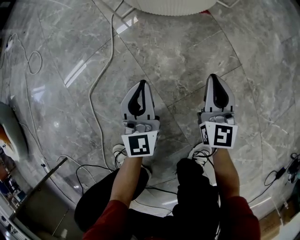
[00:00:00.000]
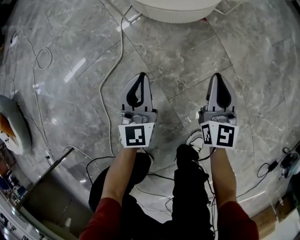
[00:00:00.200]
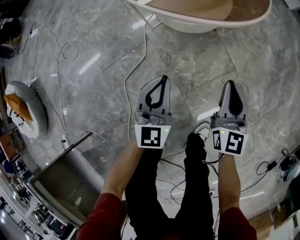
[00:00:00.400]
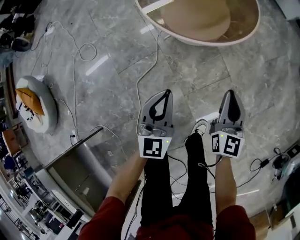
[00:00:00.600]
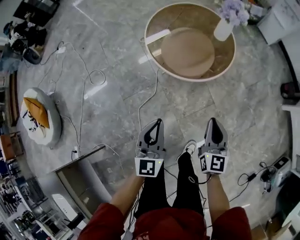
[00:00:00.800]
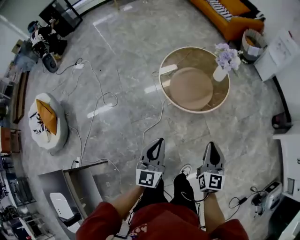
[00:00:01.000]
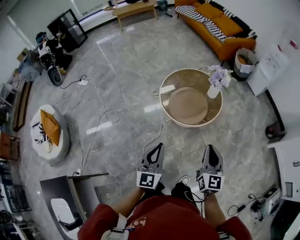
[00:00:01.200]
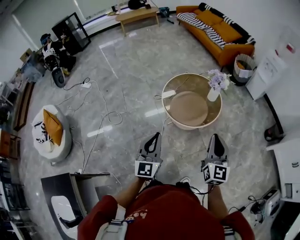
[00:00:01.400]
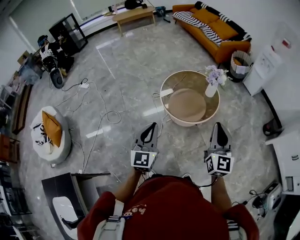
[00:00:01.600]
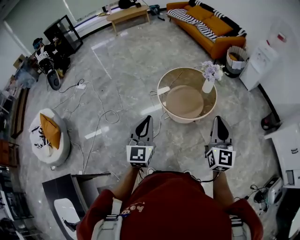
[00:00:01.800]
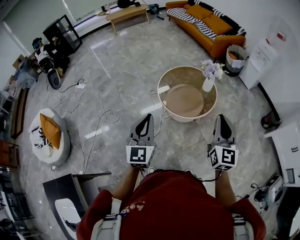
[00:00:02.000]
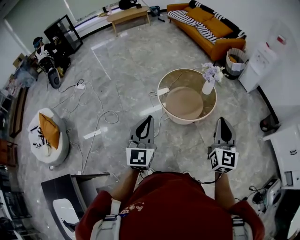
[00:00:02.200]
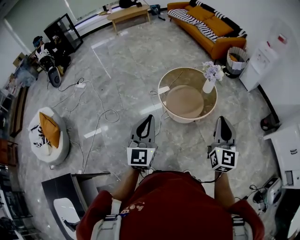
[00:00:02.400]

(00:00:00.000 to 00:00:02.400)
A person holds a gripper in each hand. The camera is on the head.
00:00:00.000 - 00:00:01.200: The grippers both shift upward by about 80 cm.
00:00:01.200 - 00:00:02.400: The left gripper goes some 15 cm upward and to the left. The right gripper heads upward, covering approximately 15 cm.

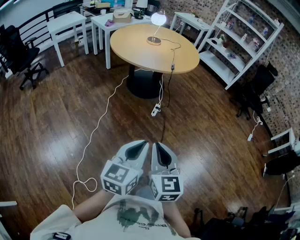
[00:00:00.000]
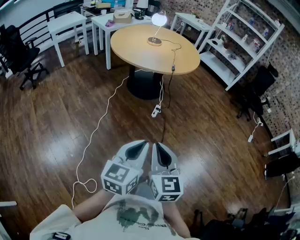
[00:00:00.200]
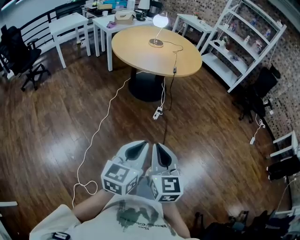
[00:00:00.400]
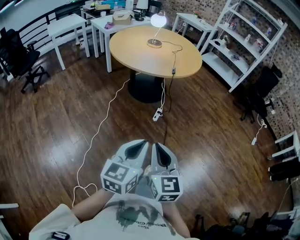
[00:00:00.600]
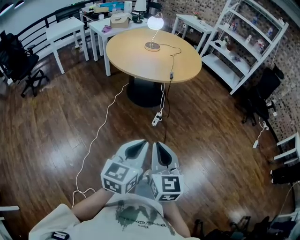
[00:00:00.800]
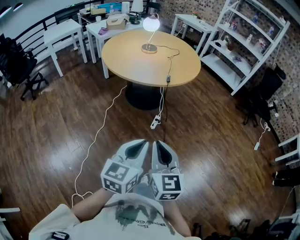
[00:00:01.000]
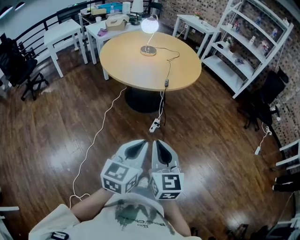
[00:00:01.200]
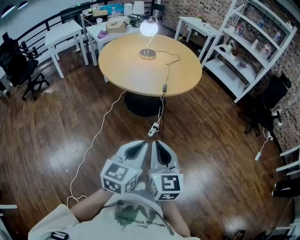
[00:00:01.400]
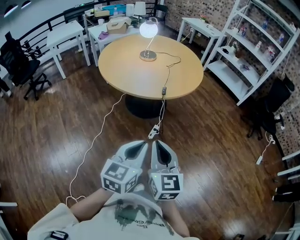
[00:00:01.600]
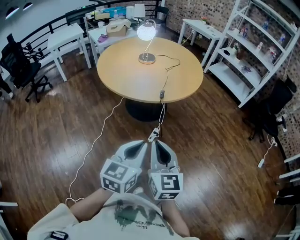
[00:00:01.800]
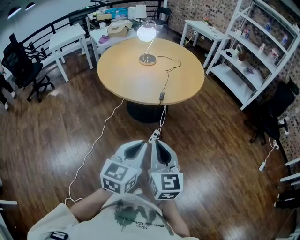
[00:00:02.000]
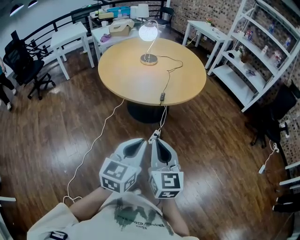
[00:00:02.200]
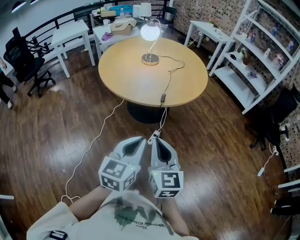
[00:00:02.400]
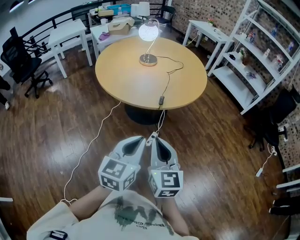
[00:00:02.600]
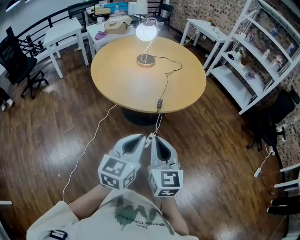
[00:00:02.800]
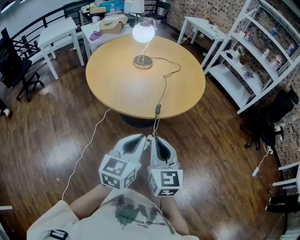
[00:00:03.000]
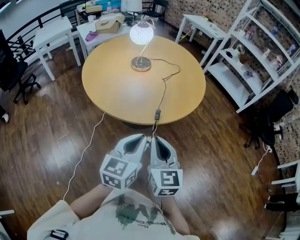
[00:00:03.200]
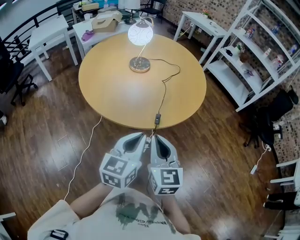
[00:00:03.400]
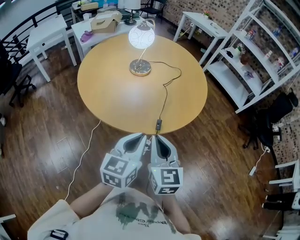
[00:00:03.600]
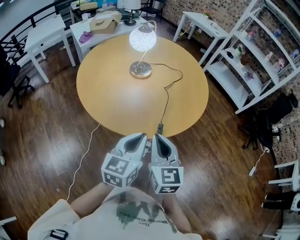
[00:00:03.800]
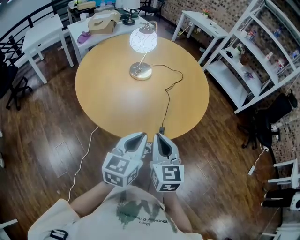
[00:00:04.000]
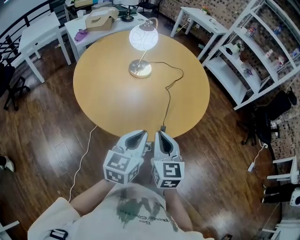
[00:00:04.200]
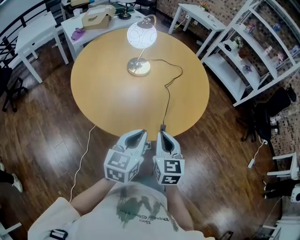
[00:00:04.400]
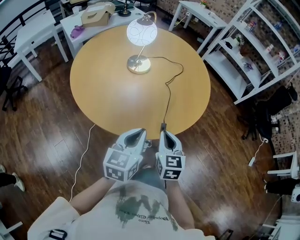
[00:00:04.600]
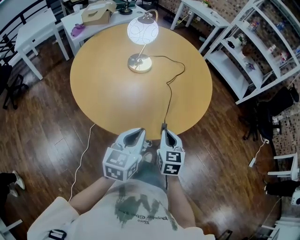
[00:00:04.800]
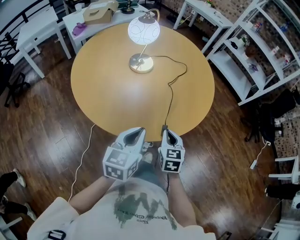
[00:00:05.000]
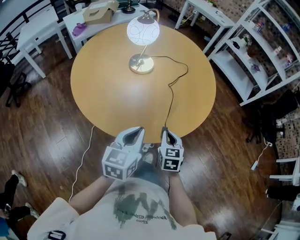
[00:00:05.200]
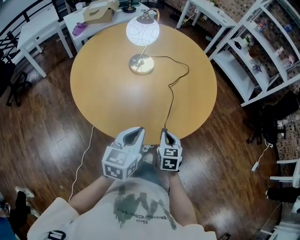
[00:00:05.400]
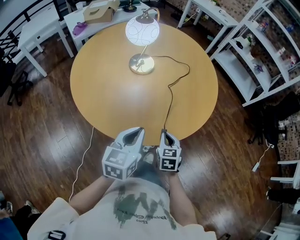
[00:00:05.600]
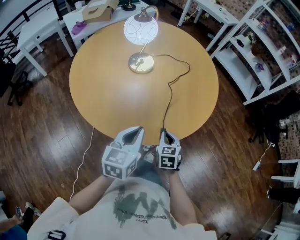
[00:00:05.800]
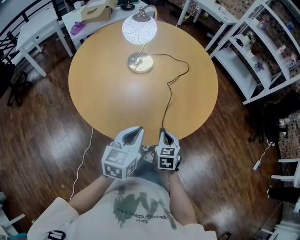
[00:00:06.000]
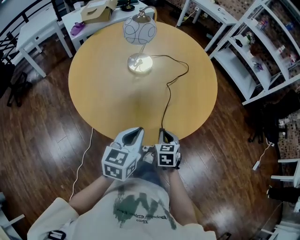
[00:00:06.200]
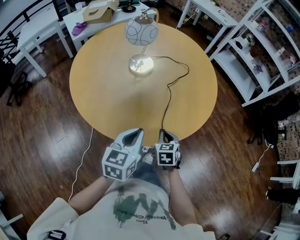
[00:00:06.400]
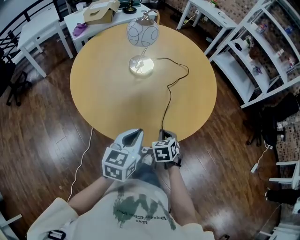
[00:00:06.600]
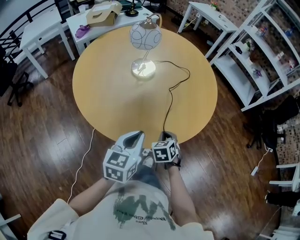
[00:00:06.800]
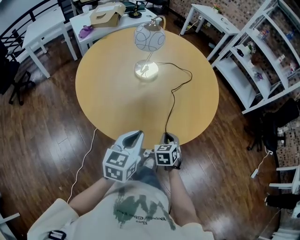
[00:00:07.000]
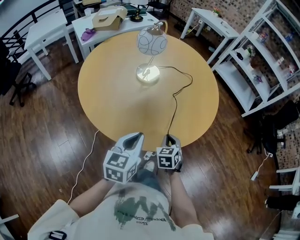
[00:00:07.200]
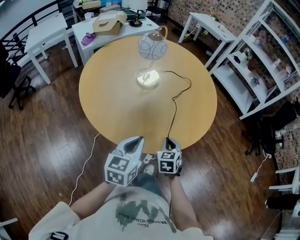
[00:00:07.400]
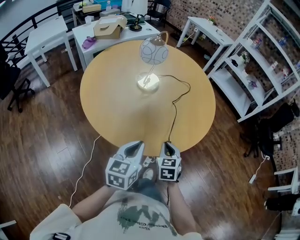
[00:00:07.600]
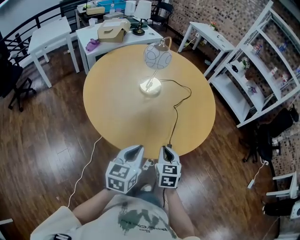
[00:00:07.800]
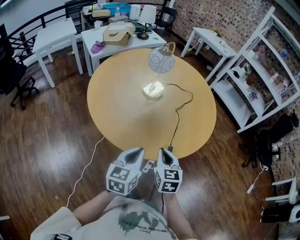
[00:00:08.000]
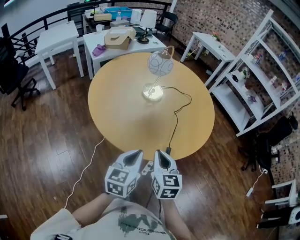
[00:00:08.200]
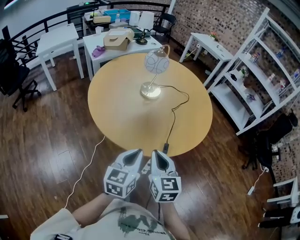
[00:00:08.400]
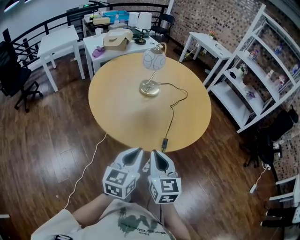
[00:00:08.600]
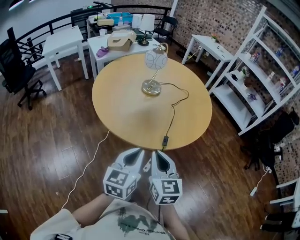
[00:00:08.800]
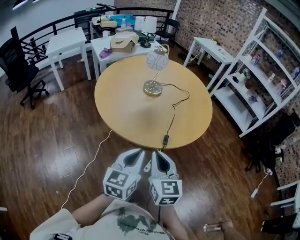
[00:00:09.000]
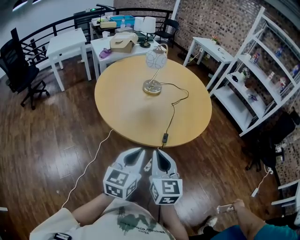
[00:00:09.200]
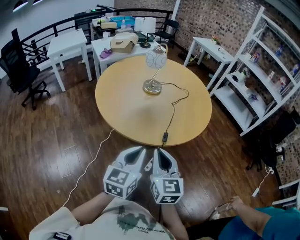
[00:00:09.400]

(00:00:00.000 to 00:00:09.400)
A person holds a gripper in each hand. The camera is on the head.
00:00:00.000 - 00:00:01.600: Both grippers move forward, roughly 30 cm.
00:00:01.600 - 00:00:03.200: Both grippers move forward, approximately 25 cm.
00:00:03.200 - 00:00:04.800: The left gripper travels forward, downward and to the left by roughly 20 cm; the right gripper is displaced forward and downward by approximately 25 cm, and changes its angle by some 20 degrees.
00:00:04.800 - 00:00:06.200: The right gripper shifts approximately 10 cm downward.
00:00:06.200 - 00:00:07.800: The left gripper heads backward, covering approximately 5 cm. Meanwhile the right gripper travels upward and to the left by roughly 10 cm.
00:00:07.800 - 00:00:09.400: The two grippers go roughly 20 cm backward and upward. The right gripper rotates roughly 30 degrees.

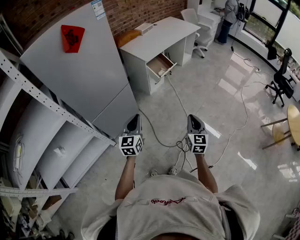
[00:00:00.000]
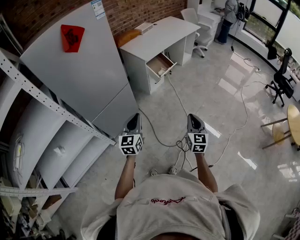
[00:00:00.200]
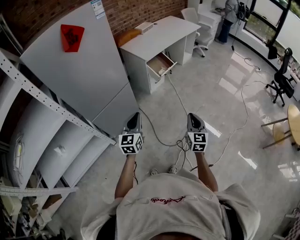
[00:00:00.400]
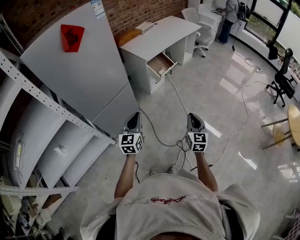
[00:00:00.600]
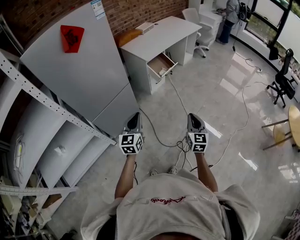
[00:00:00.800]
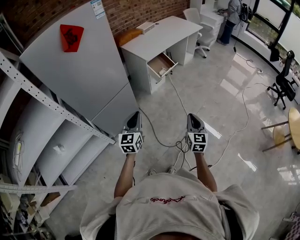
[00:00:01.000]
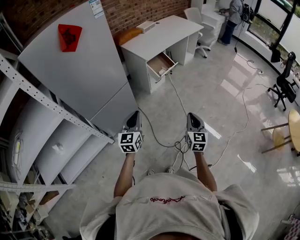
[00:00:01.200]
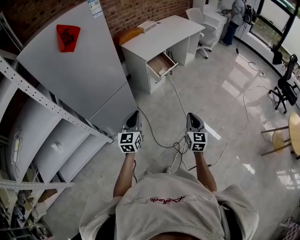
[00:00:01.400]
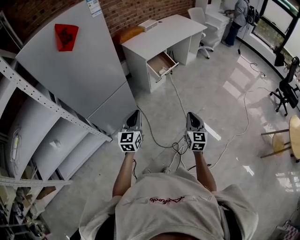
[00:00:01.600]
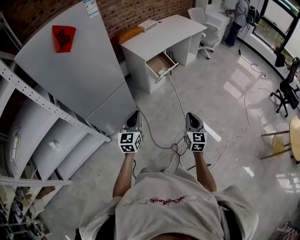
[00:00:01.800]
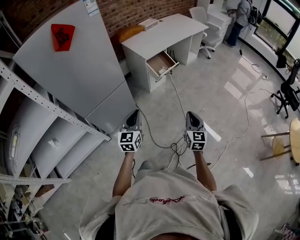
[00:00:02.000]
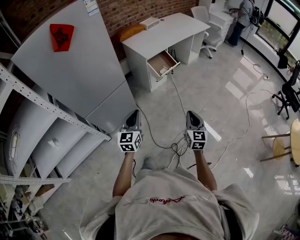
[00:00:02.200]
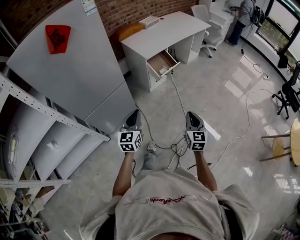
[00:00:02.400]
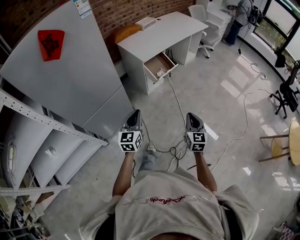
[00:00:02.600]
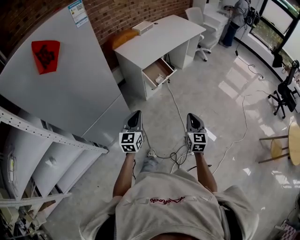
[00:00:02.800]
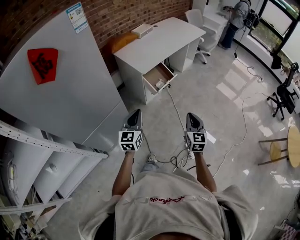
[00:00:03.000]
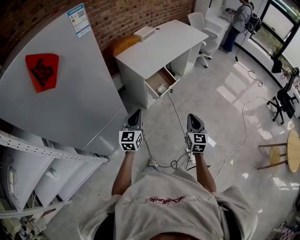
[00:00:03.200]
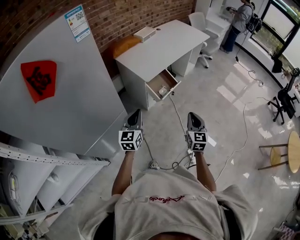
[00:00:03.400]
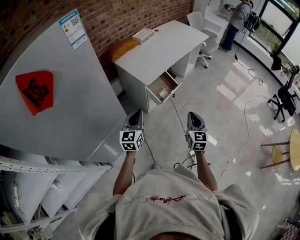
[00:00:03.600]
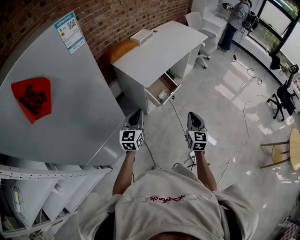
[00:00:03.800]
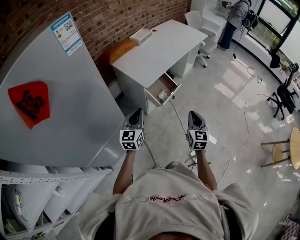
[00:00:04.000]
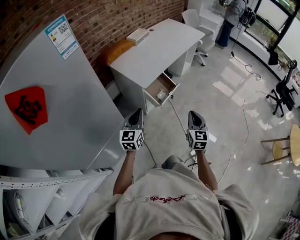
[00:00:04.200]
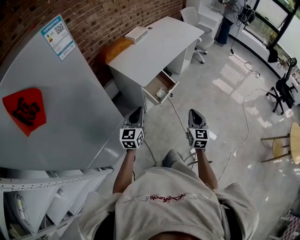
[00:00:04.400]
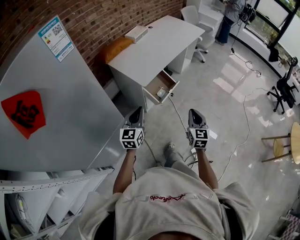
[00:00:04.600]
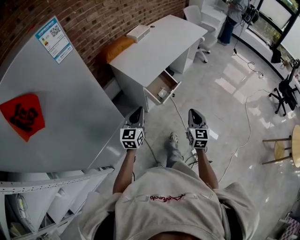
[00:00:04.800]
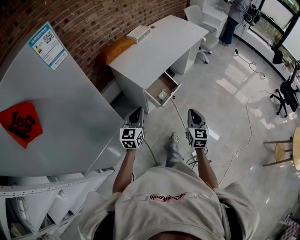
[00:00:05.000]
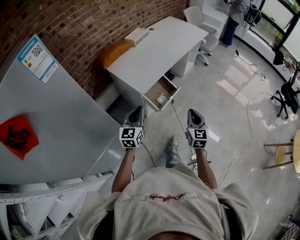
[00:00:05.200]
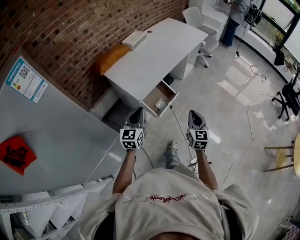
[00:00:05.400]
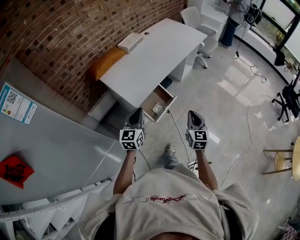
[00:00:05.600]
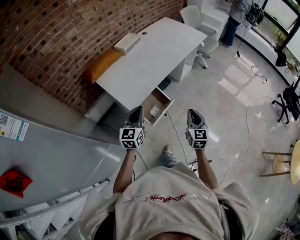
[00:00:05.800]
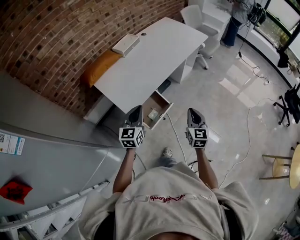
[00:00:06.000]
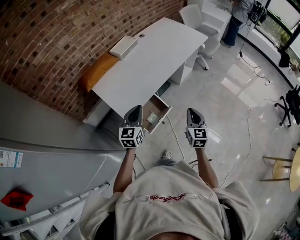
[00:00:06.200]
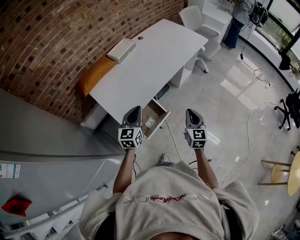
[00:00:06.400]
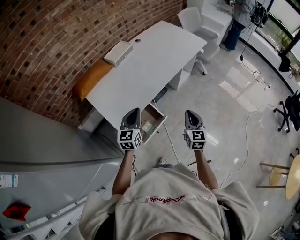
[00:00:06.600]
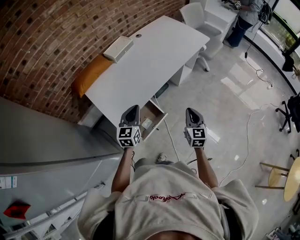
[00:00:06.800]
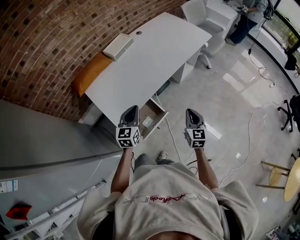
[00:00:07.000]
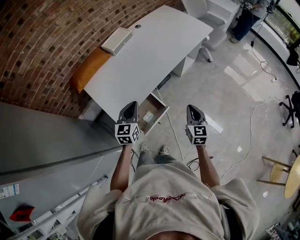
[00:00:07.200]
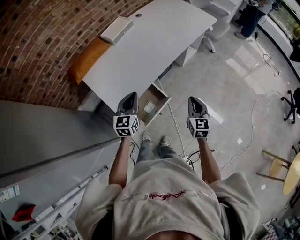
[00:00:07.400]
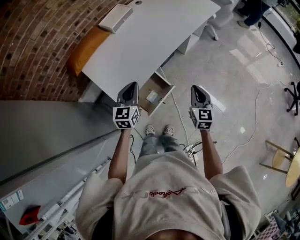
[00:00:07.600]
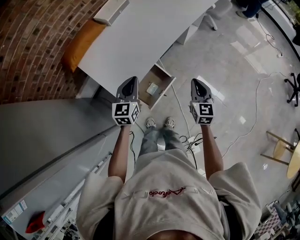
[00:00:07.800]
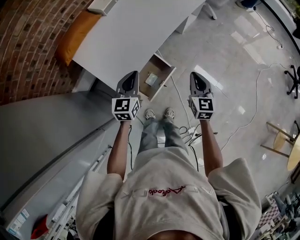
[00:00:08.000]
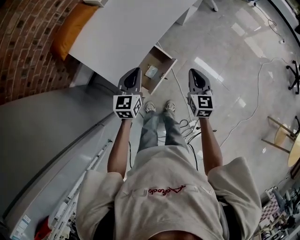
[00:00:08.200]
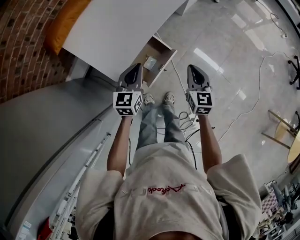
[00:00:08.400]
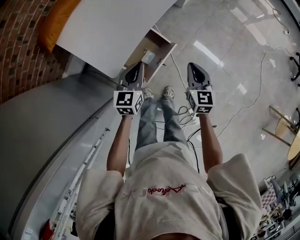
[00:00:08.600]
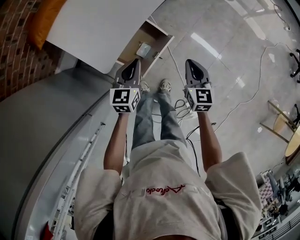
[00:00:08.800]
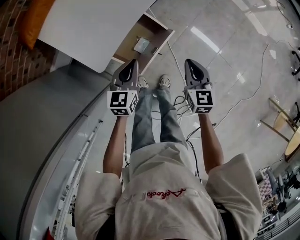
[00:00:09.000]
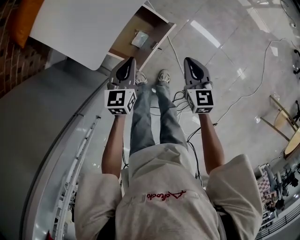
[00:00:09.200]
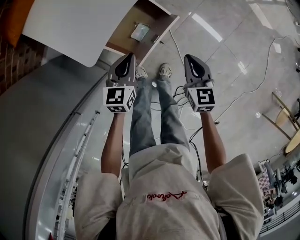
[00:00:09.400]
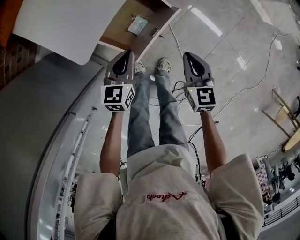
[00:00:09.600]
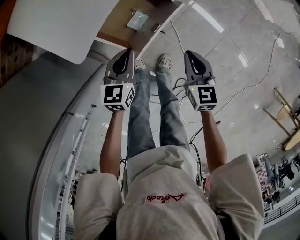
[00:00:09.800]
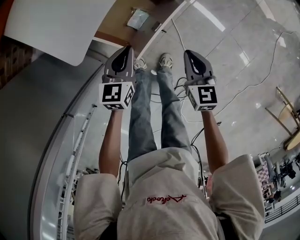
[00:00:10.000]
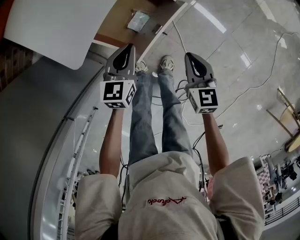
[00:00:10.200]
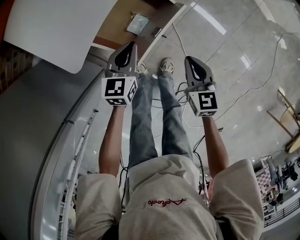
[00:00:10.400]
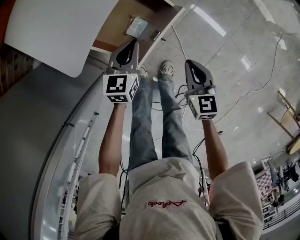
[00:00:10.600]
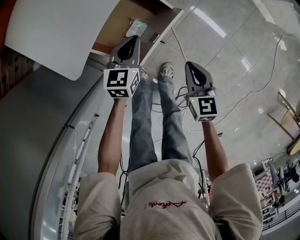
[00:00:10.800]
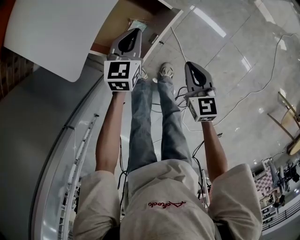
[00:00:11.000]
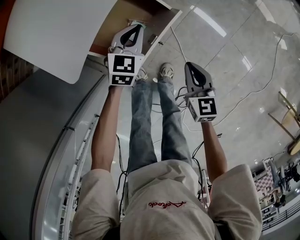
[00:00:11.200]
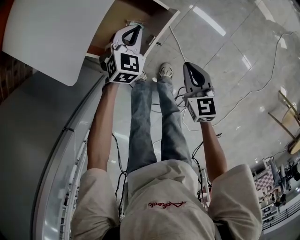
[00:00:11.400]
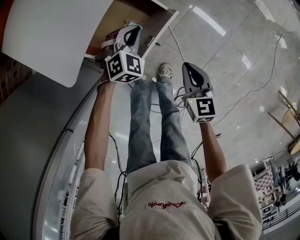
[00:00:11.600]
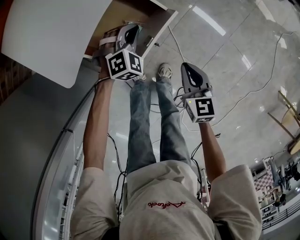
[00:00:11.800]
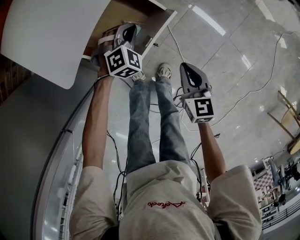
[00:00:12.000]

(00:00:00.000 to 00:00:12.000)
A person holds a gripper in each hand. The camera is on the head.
00:00:00.000 - 00:00:01.600: The right gripper travels forward by approximately 5 cm. Meanwhile the left gripper heads to the right, covering roughly 5 cm.
00:00:01.600 - 00:00:03.000: The two grippers go roughly 20 cm forward.
00:00:03.000 - 00:00:04.400: Both grippers move forward, about 15 cm.
00:00:04.400 - 00:00:06.000: The grippers both shift forward by some 30 cm.
00:00:06.000 - 00:00:07.600: The two grippers go approximately 15 cm forward and downward.
00:00:07.600 - 00:00:09.000: The left gripper moves downward, roughly 20 cm, while the right gripper is displaced downward and backward by some 20 cm.
00:00:09.000 - 00:00:10.400: The two grippers go some 15 cm downward.
00:00:10.400 - 00:00:12.000: The left gripper travels forward and downward by about 10 cm, and twists about 60 degrees clockwise, seen from behind.
